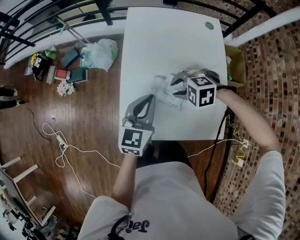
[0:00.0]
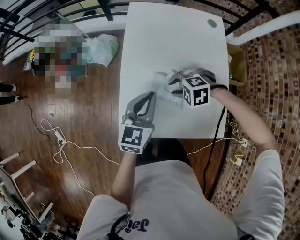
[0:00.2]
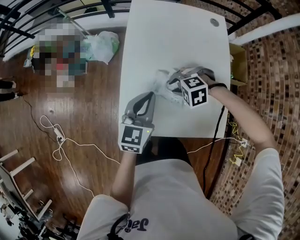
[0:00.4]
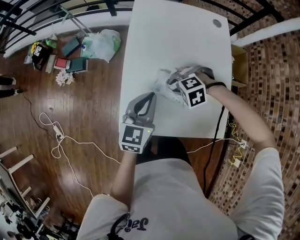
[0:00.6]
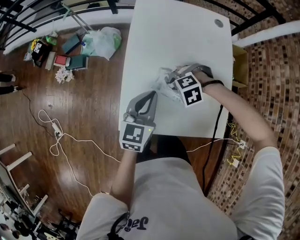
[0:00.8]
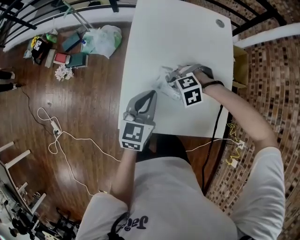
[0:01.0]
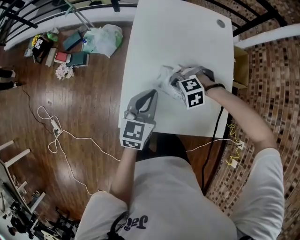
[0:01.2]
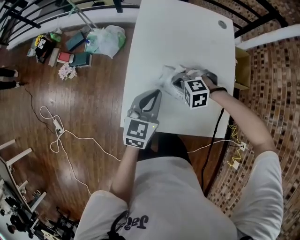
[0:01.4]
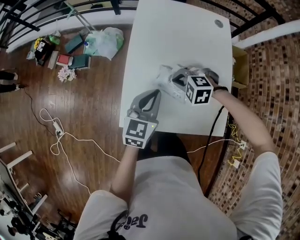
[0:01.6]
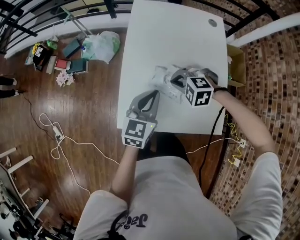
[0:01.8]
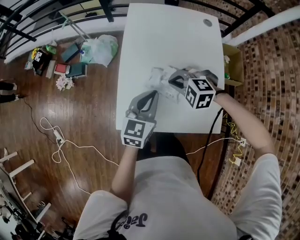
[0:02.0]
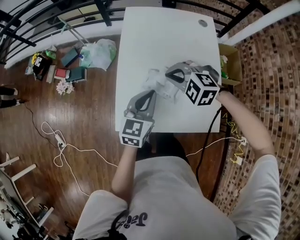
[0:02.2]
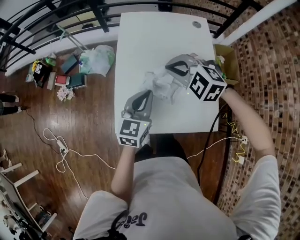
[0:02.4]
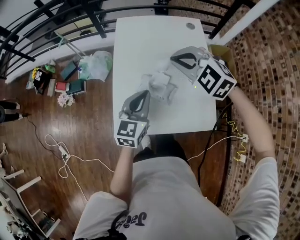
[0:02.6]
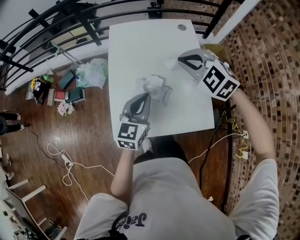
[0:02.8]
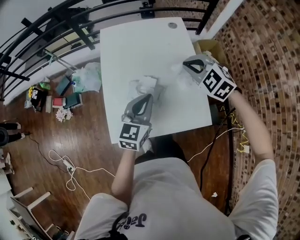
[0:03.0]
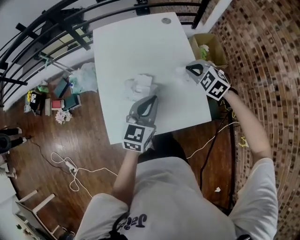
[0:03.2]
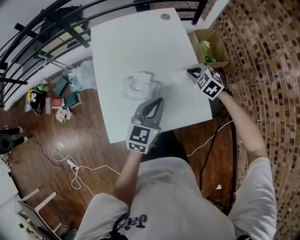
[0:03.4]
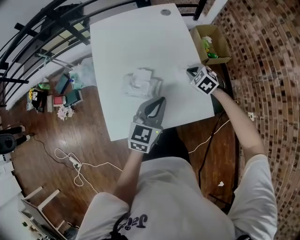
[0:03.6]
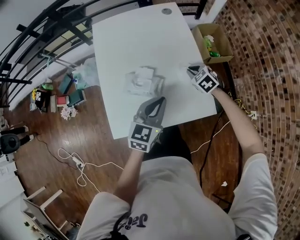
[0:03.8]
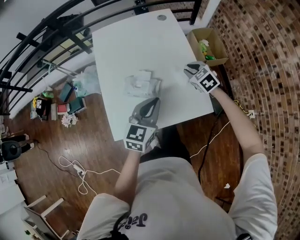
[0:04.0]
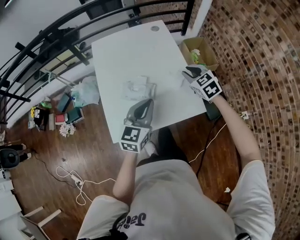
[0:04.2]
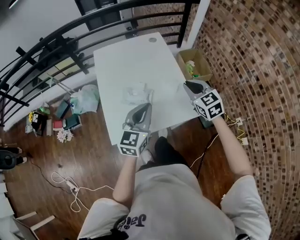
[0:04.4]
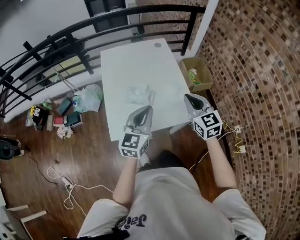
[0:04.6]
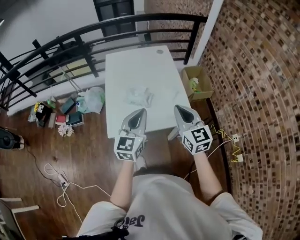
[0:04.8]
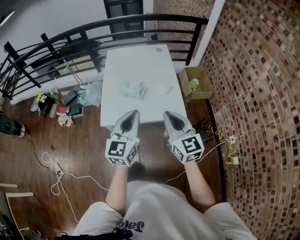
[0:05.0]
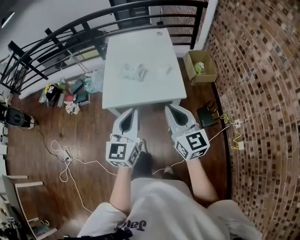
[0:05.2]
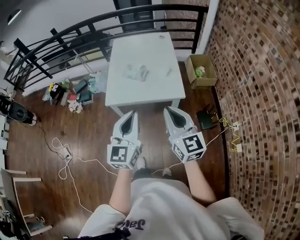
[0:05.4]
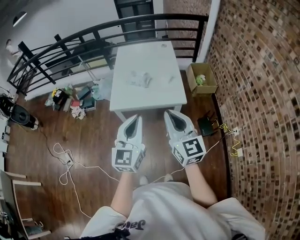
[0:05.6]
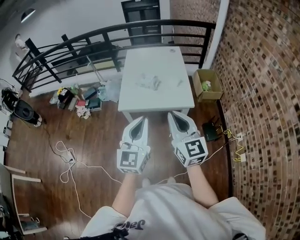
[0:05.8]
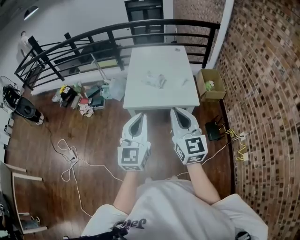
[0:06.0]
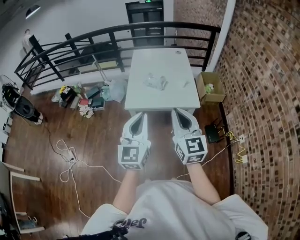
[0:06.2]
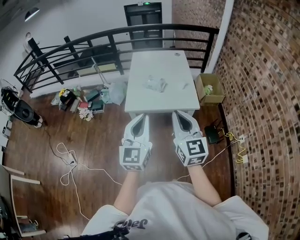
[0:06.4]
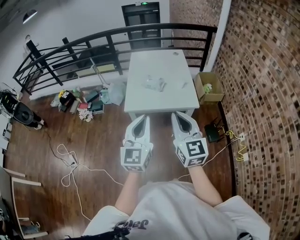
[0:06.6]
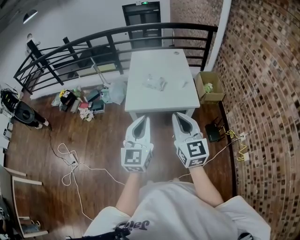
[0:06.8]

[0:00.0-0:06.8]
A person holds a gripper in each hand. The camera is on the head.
0:00.0 to 0:01.4: The right gripper travels downward by about 10 cm, and closes up.
0:01.4 to 0:02.8: The left gripper travels upward and to the right by some 10 cm. Meanwhile the right gripper moves upward, some 25 cm, and angles its fingers upward, by roughly 30 degrees.
0:02.8 to 0:04.0: The left gripper is displaced to the right by about 10 cm, while the right gripper heads downward and to the right, covering roughly 25 cm, and turns by approximately 40 degrees.
0:04.0 to 0:05.4: Both grippers move backward and upward, some 50 cm. The right gripper tips its fingers upward by some 50 degrees. Meanwhile the left gripper changes its angle by roughly 30 degrees.
0:05.4 to 0:06.8: The right gripper is displaced to the left by about 10 cm. The left gripper moves to the left and backward, some 10 cm.

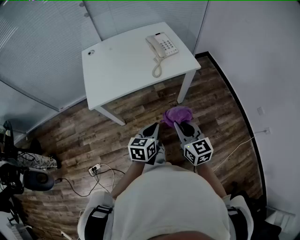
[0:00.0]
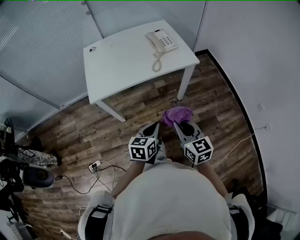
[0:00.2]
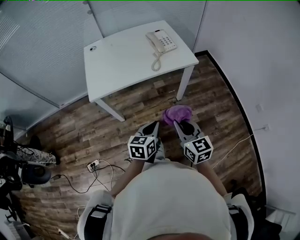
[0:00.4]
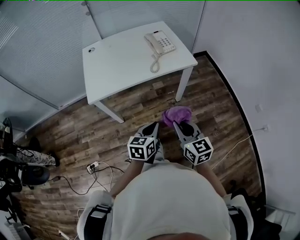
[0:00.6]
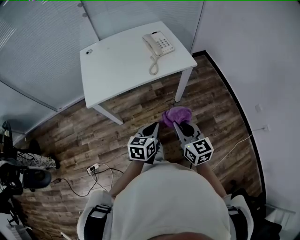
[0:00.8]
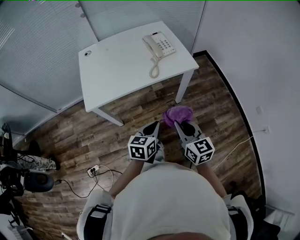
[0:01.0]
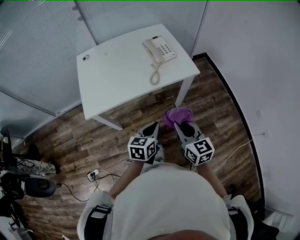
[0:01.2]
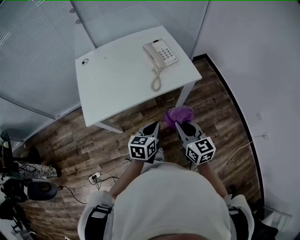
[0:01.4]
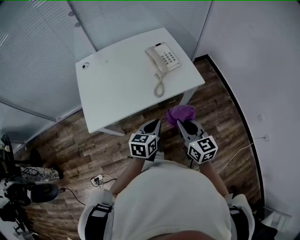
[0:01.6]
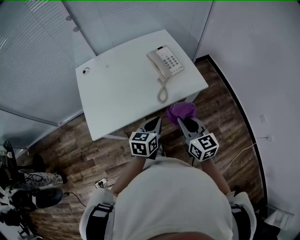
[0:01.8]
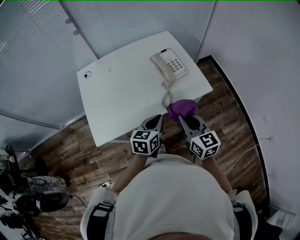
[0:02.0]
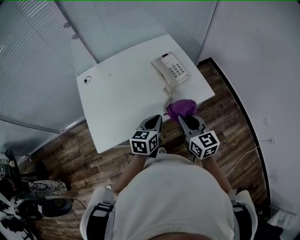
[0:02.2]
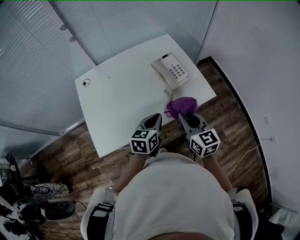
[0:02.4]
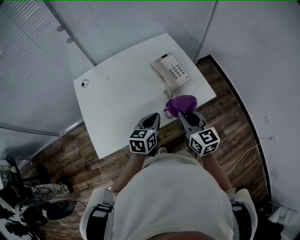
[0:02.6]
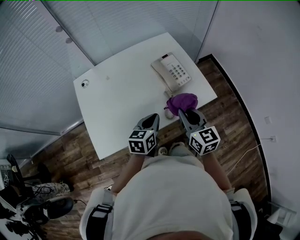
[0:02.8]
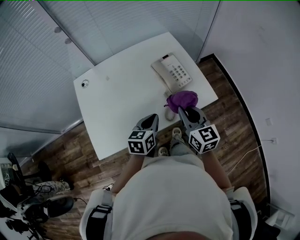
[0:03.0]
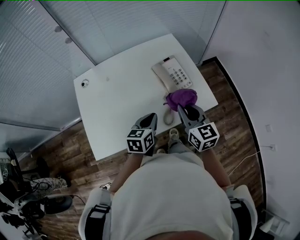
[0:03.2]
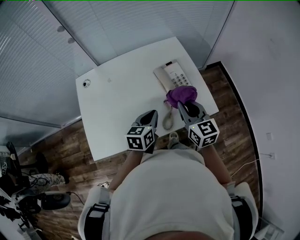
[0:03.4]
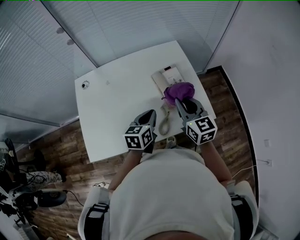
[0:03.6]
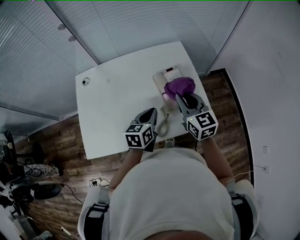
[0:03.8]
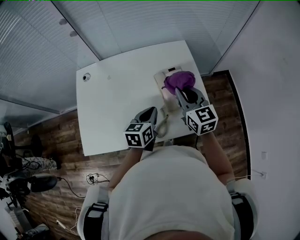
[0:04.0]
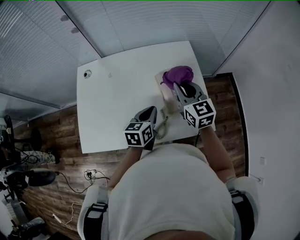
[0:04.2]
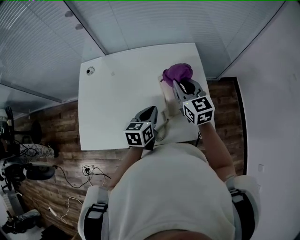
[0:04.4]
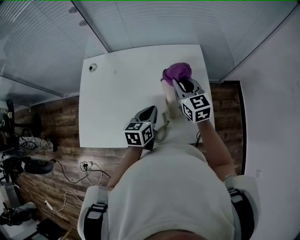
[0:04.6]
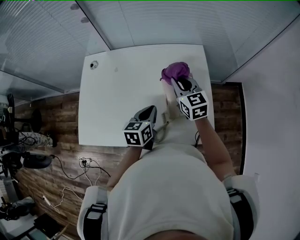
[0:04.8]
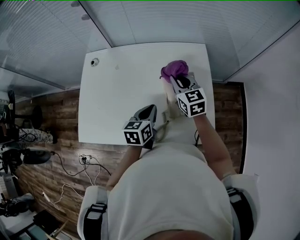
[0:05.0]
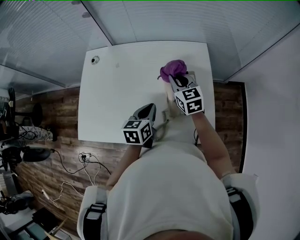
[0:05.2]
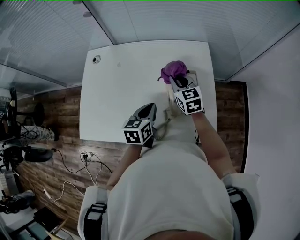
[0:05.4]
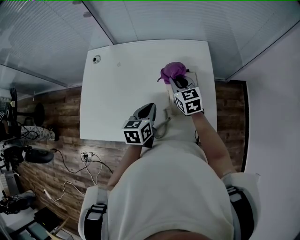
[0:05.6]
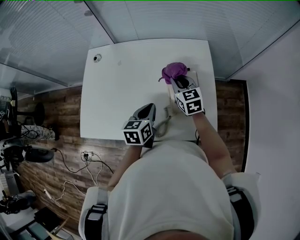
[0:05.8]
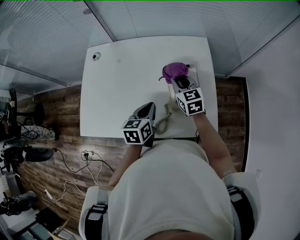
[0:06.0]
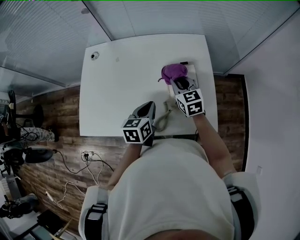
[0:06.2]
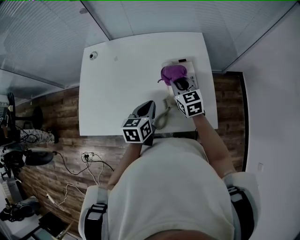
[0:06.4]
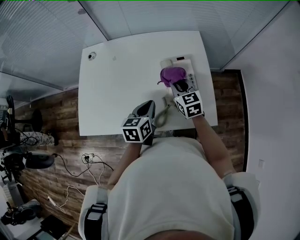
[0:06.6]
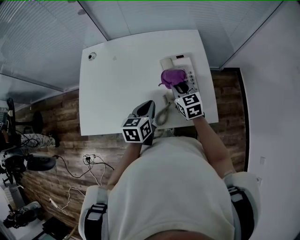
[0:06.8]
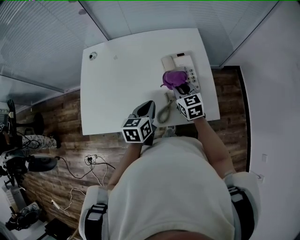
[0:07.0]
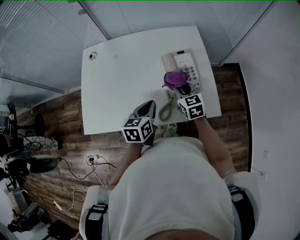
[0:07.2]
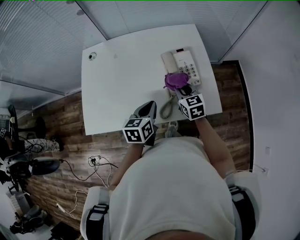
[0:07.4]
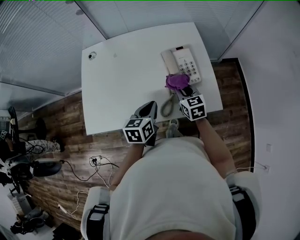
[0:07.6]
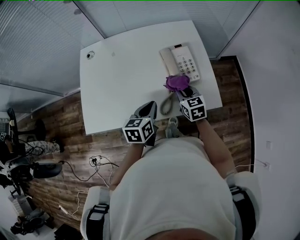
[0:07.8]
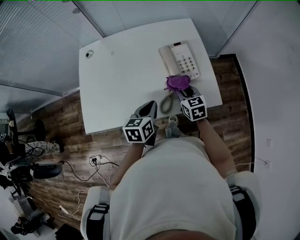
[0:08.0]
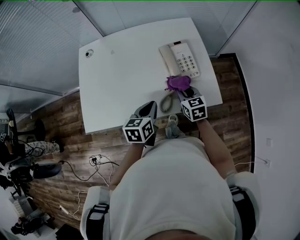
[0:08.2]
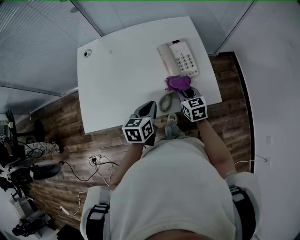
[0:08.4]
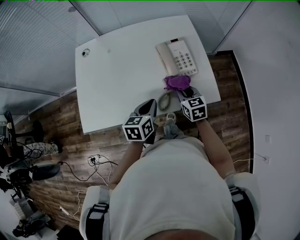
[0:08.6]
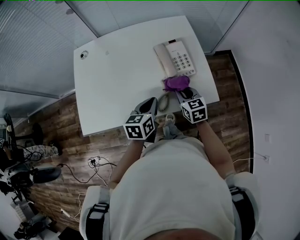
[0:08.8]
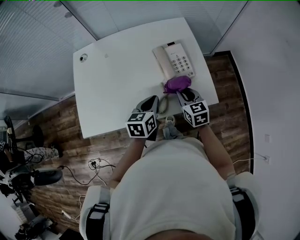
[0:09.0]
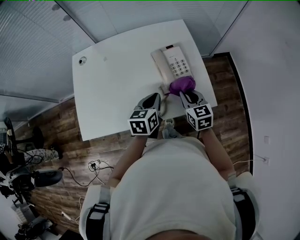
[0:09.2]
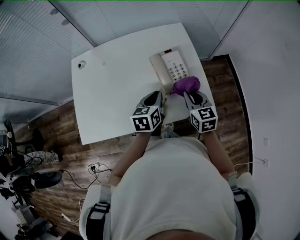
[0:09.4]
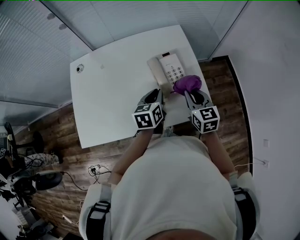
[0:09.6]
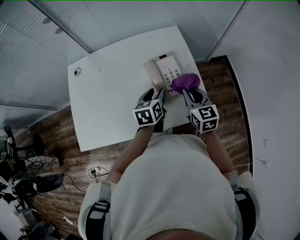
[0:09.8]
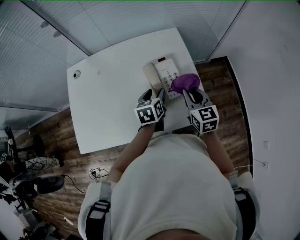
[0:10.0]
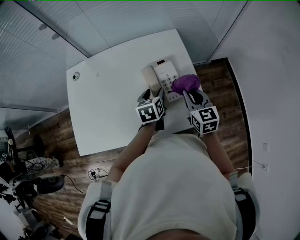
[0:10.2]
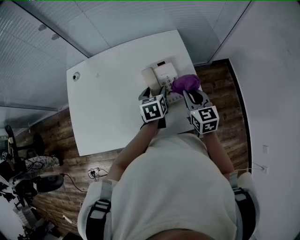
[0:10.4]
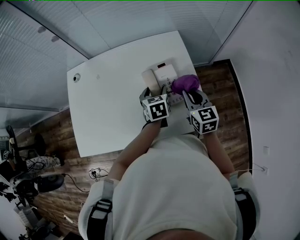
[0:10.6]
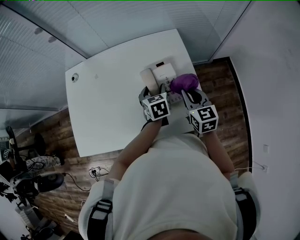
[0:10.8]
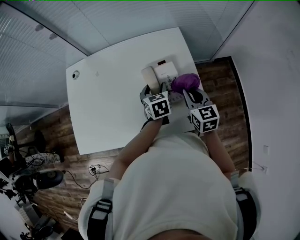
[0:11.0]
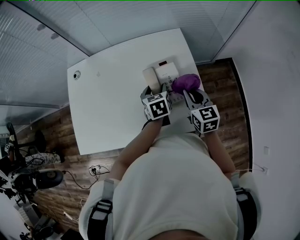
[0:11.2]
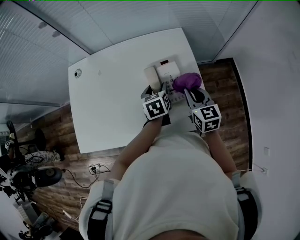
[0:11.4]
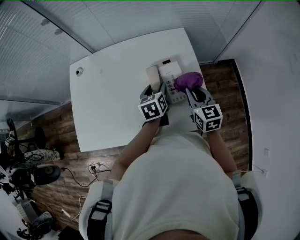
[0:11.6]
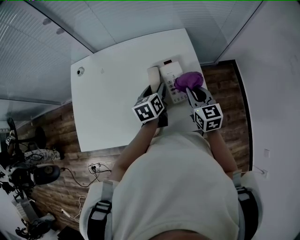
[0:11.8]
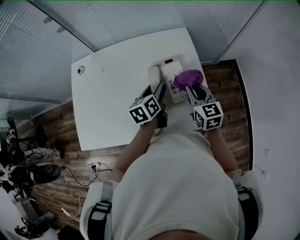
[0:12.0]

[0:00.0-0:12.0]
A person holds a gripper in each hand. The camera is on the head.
0:00.0 to 0:01.6: The grippers both shift forward by some 15 cm.
0:01.6 to 0:03.0: The grippers both shift forward by approximately 20 cm.
0:03.0 to 0:04.4: The right gripper moves forward, about 25 cm, and turns by approximately 20 degrees. The left gripper shifts about 15 cm forward, and changes its angle by approximately 20 degrees.
0:04.4 to 0:06.0: The right gripper is displaced downward by approximately 10 cm.
0:06.0 to 0:07.6: The right gripper is displaced backward by approximately 15 cm. Meanwhile the left gripper heads backward, covering some 10 cm.
0:07.6 to 0:09.0: The grippers move only a little.
0:09.0 to 0:10.4: The right gripper goes some 15 cm forward, to the right and upward; the left gripper travels forward by some 15 cm, and opens its fingers.
0:10.4 to 0:12.0: The left gripper changes its angle by roughly 20 degrees.

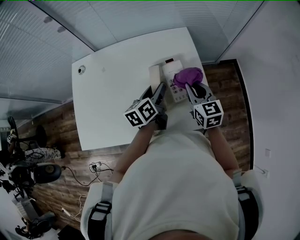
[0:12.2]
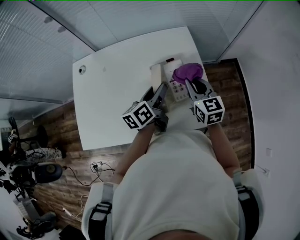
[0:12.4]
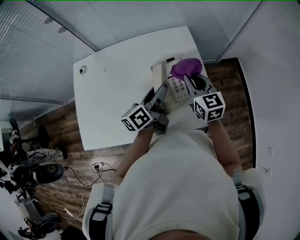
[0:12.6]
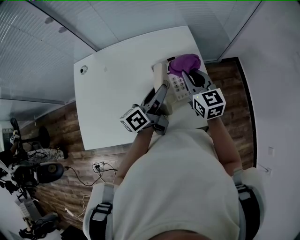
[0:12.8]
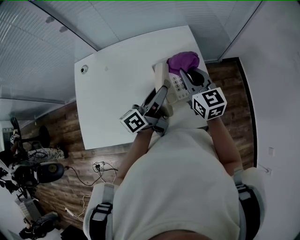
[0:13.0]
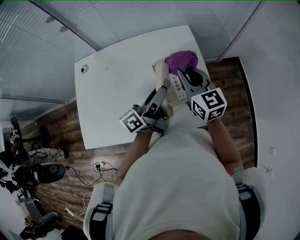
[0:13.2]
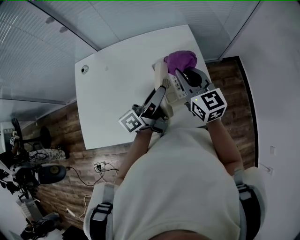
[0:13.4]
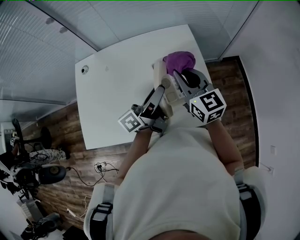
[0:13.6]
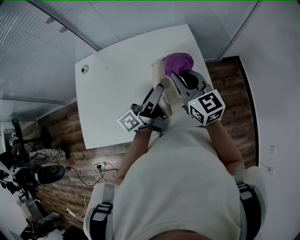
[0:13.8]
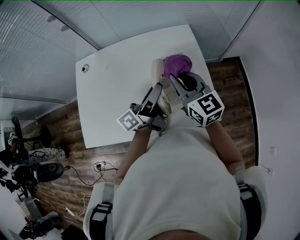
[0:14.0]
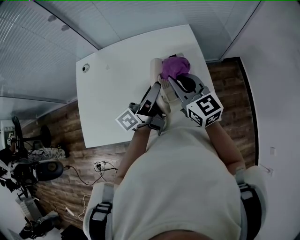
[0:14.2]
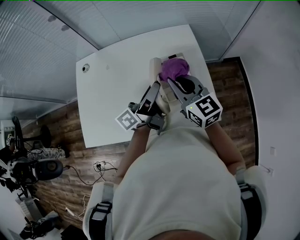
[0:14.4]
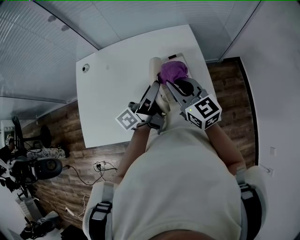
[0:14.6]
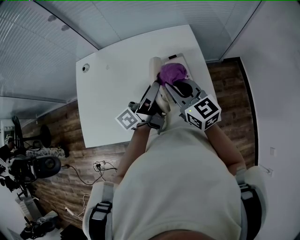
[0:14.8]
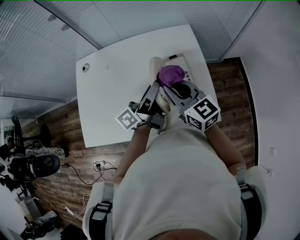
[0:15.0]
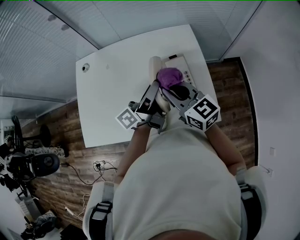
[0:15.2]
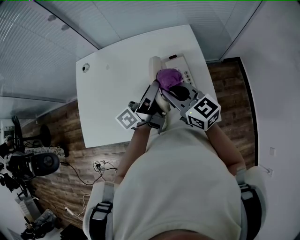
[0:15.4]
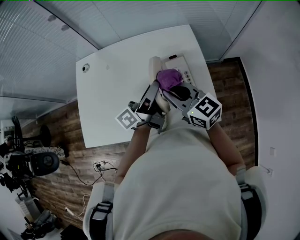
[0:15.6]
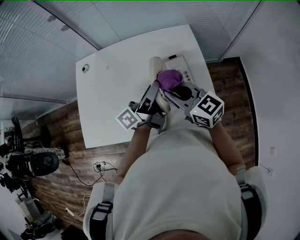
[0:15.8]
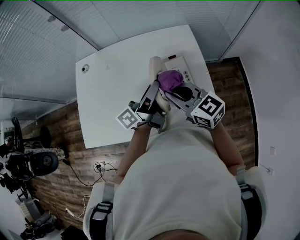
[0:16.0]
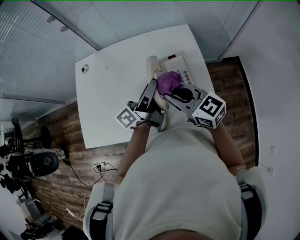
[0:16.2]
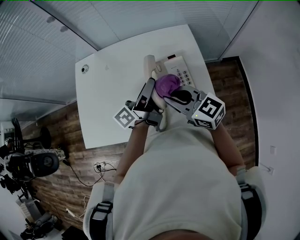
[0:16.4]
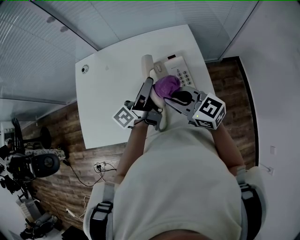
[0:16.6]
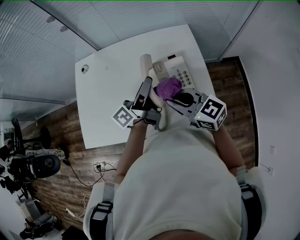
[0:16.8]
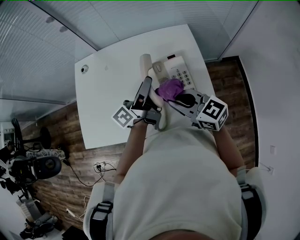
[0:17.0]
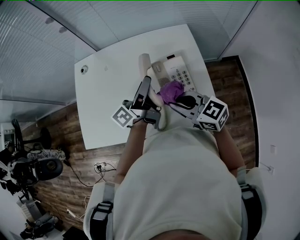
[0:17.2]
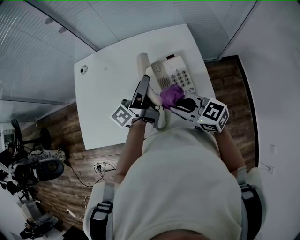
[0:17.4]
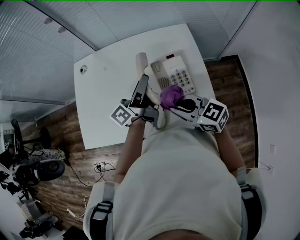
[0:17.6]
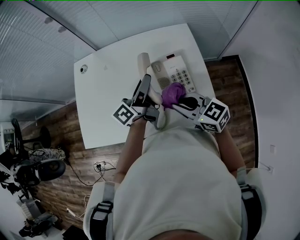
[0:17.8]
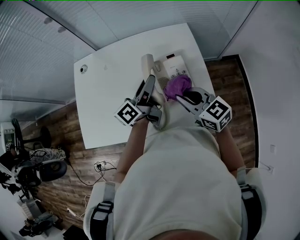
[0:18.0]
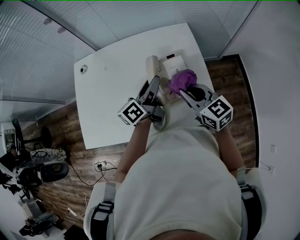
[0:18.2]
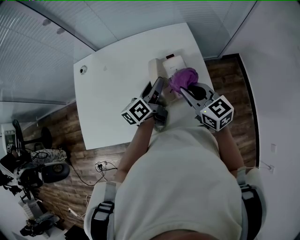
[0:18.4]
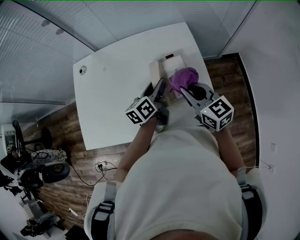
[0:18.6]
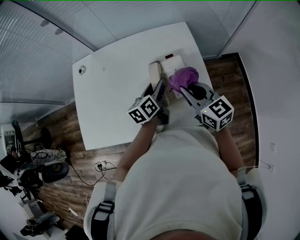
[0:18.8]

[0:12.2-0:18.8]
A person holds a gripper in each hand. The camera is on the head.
0:12.2 to 0:13.8: The right gripper is displaced upward and to the left by roughly 10 cm. Meanwhile the left gripper is displaced upward by approximately 10 cm, and tilts its fingers about 40 degrees upward.
0:13.8 to 0:15.4: The right gripper is displaced backward by about 5 cm.
0:15.4 to 0:17.2: The right gripper ends up about 5 cm from where it was.
0:17.2 to 0:18.8: The right gripper moves to the right, about 5 cm, and changes its angle by roughly 20 degrees. Meanwhile the left gripper goes approximately 10 cm downward, and tips its fingers downward by approximately 30 degrees.
